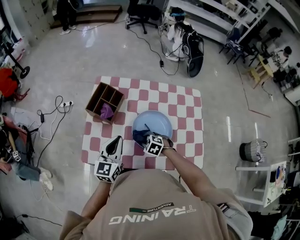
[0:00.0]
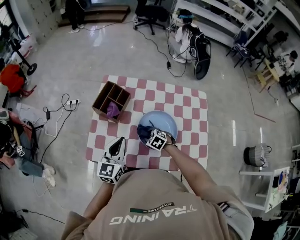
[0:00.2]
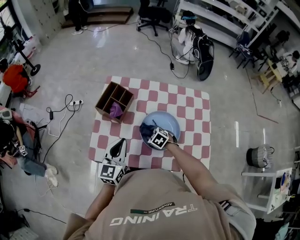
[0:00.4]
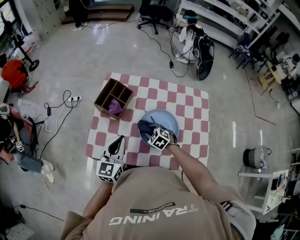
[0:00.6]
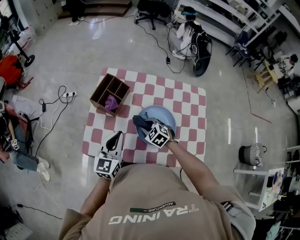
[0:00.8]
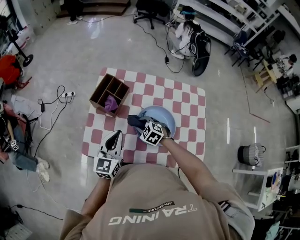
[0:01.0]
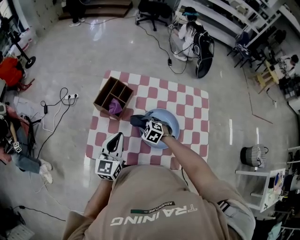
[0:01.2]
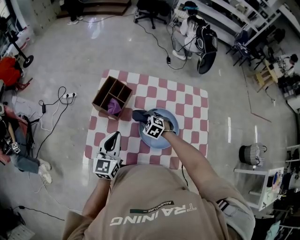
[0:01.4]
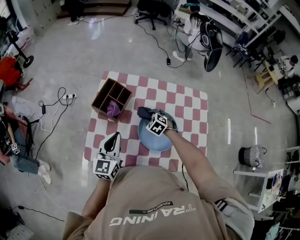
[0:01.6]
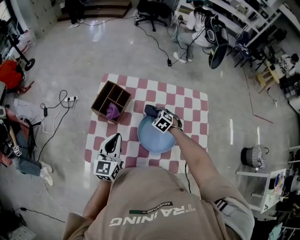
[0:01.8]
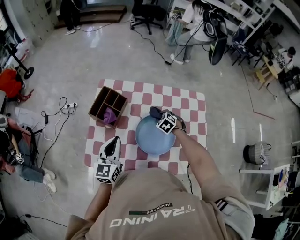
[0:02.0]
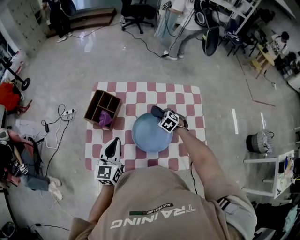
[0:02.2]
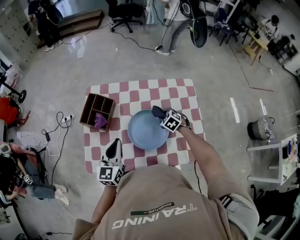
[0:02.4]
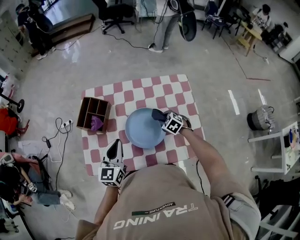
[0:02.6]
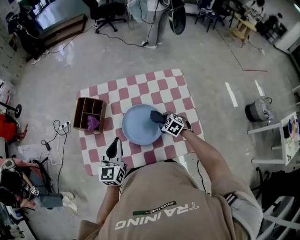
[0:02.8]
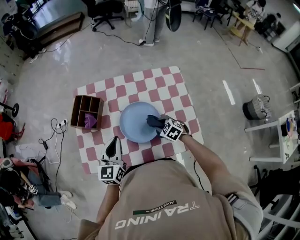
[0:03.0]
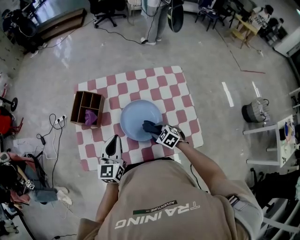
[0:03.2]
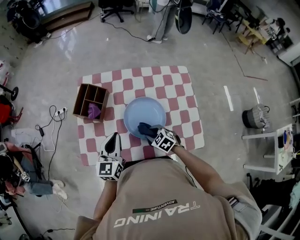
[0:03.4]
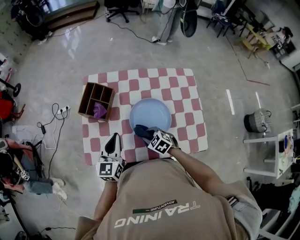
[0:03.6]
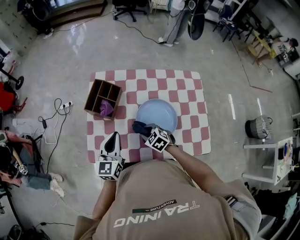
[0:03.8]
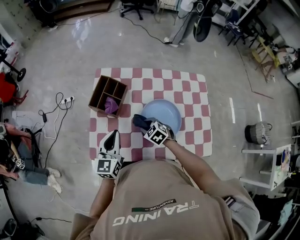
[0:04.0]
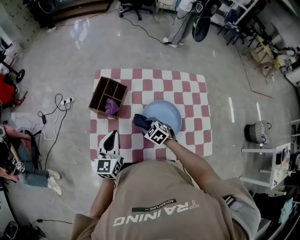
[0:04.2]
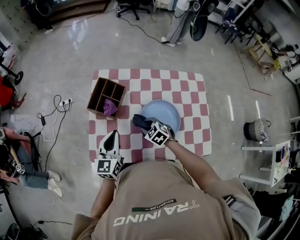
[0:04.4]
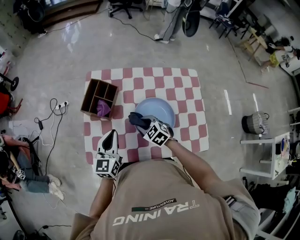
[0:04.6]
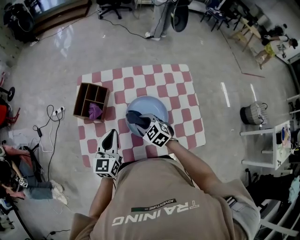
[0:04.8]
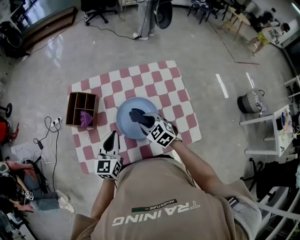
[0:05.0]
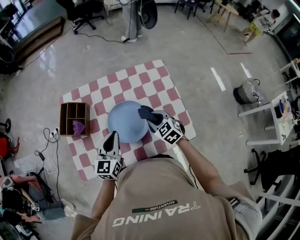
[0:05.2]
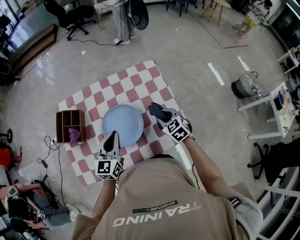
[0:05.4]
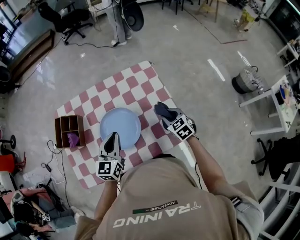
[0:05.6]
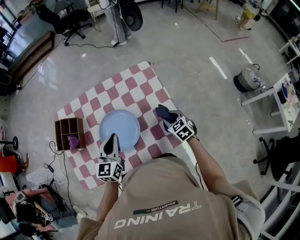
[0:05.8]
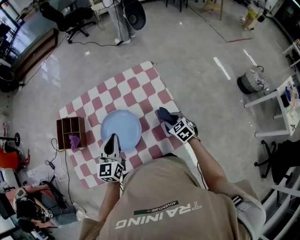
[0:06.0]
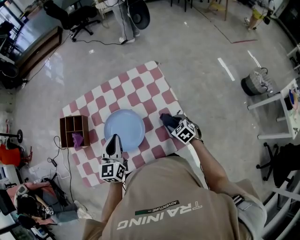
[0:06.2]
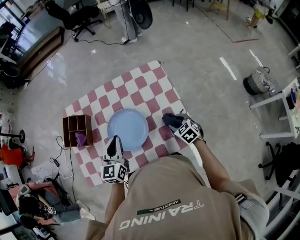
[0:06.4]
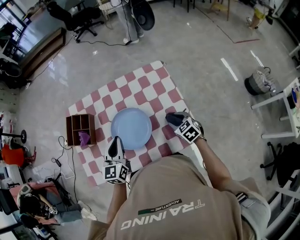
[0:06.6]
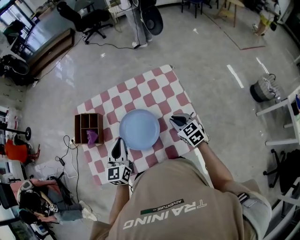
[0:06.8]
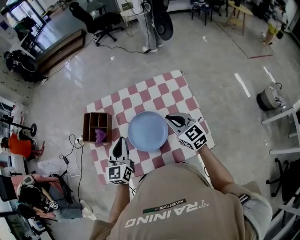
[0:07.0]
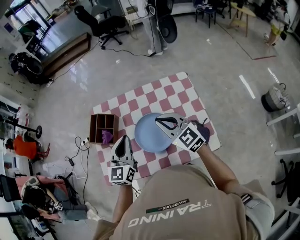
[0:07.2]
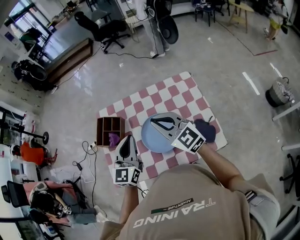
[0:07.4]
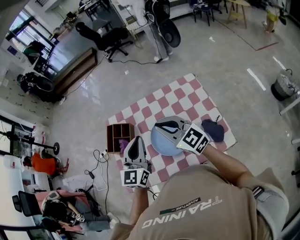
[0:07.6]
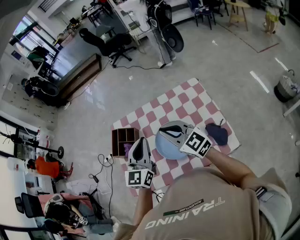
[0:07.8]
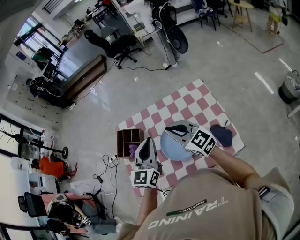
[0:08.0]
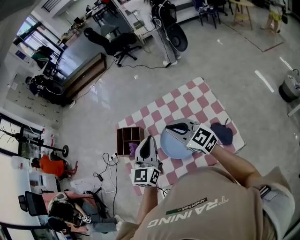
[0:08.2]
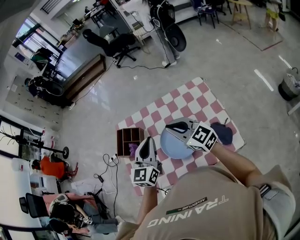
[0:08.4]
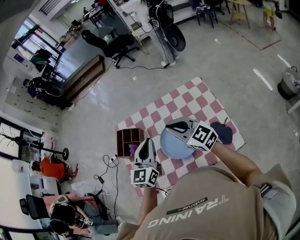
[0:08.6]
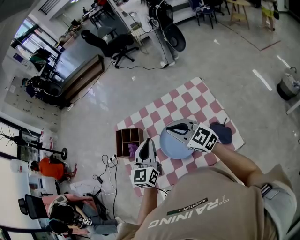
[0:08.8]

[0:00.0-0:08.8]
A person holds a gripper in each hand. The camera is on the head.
0.0 to 1.4 s: The right gripper is displaced forward by about 10 cm.
1.4 to 3.0 s: The right gripper travels to the right and backward by about 20 cm, and changes its angle by roughly 30 degrees; the left gripper goes some 10 cm to the right.
3.0 to 4.4 s: The right gripper travels to the left by some 20 cm. Meanwhile the left gripper shifts about 10 cm to the left.
4.4 to 5.8 s: The left gripper moves some 25 cm, and turns by some 20 degrees; the right gripper shifts by approximately 35 cm, and changes its angle by some 40 degrees.
5.8 to 7.4 s: The left gripper shifts approximately 15 cm upward and to the left; the right gripper is displaced to the left and upward by some 35 cm, tilts its fingers about 40 degrees upward, and closes.
7.4 to 8.8 s: The grippers move only a little.

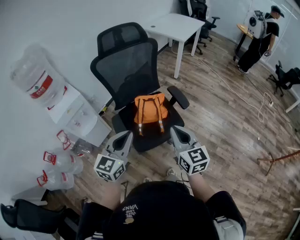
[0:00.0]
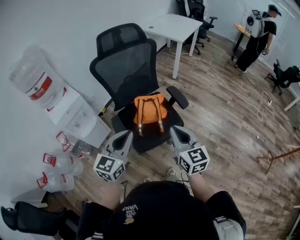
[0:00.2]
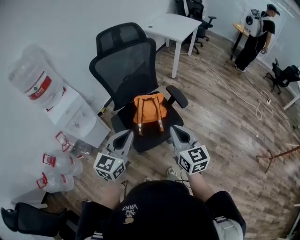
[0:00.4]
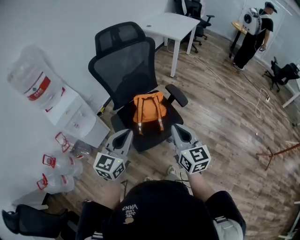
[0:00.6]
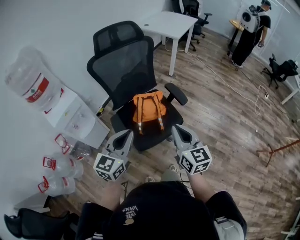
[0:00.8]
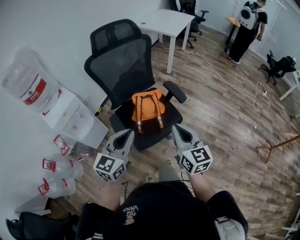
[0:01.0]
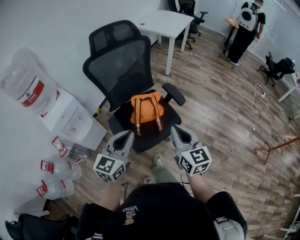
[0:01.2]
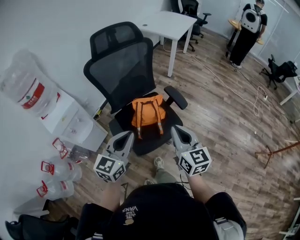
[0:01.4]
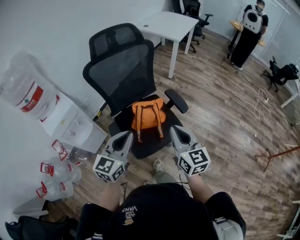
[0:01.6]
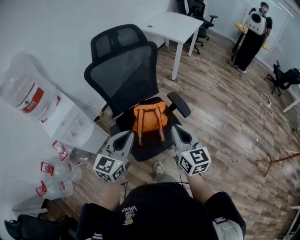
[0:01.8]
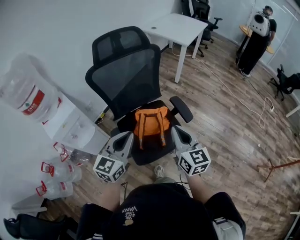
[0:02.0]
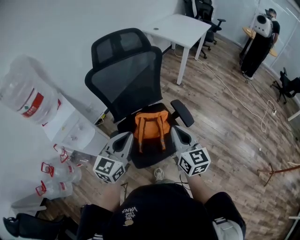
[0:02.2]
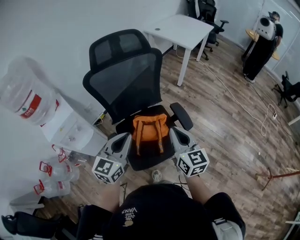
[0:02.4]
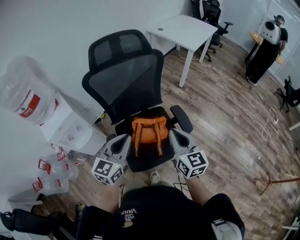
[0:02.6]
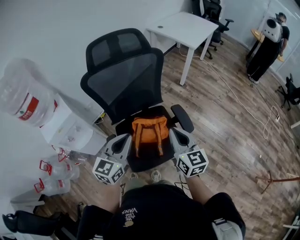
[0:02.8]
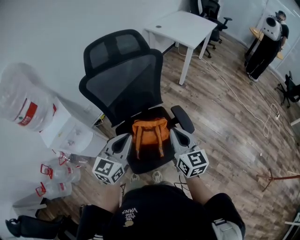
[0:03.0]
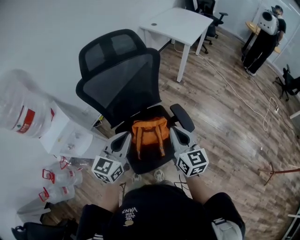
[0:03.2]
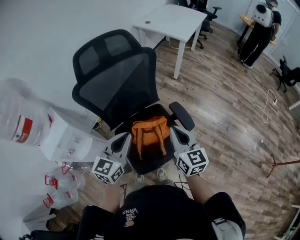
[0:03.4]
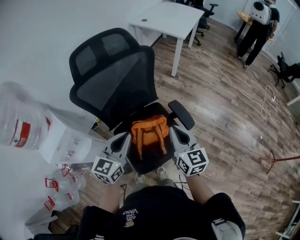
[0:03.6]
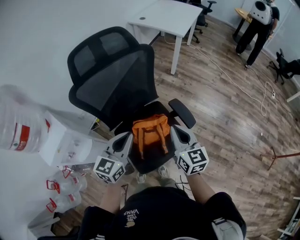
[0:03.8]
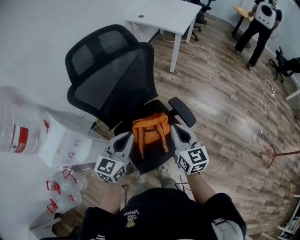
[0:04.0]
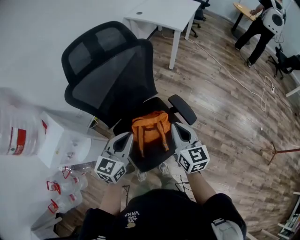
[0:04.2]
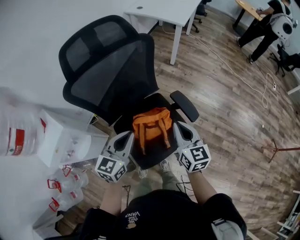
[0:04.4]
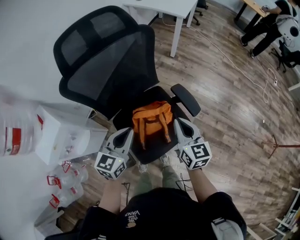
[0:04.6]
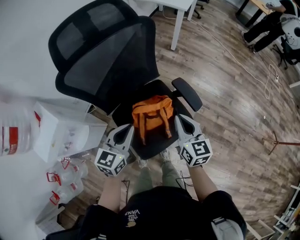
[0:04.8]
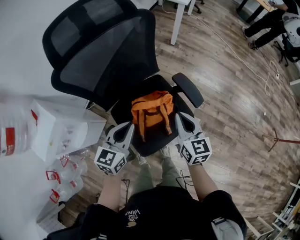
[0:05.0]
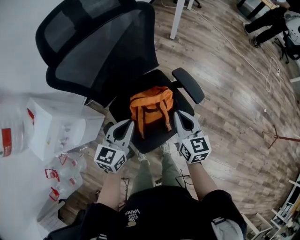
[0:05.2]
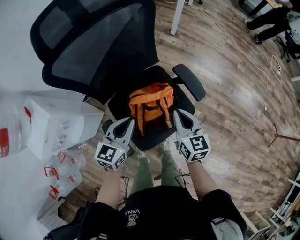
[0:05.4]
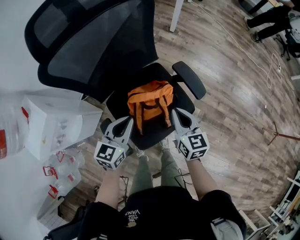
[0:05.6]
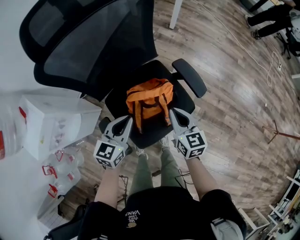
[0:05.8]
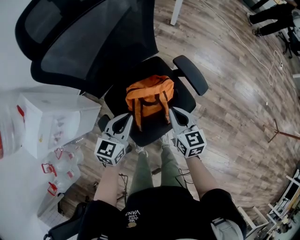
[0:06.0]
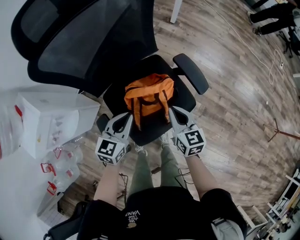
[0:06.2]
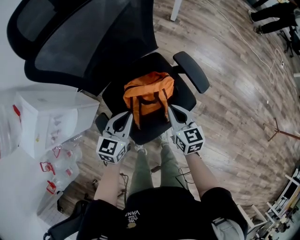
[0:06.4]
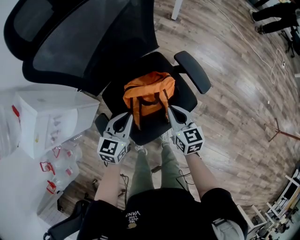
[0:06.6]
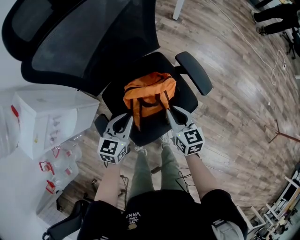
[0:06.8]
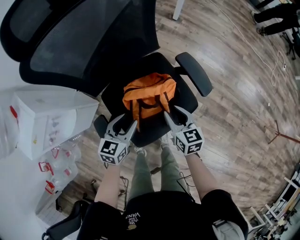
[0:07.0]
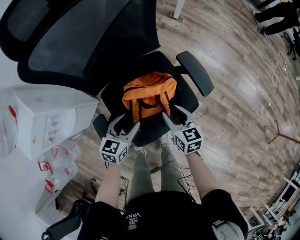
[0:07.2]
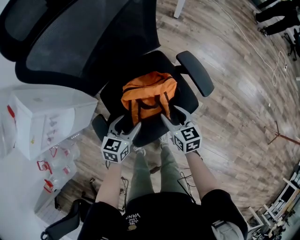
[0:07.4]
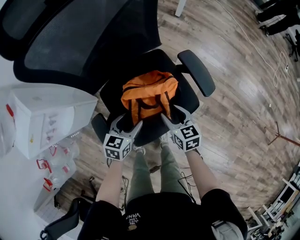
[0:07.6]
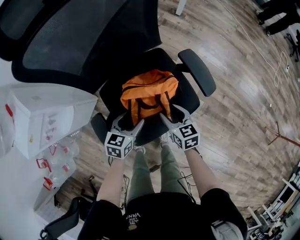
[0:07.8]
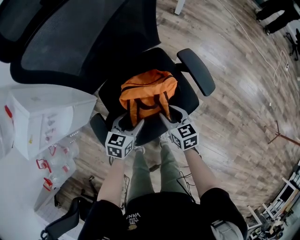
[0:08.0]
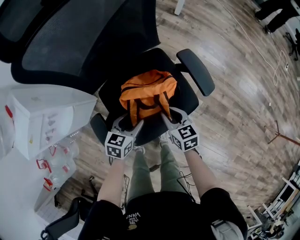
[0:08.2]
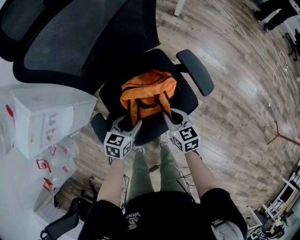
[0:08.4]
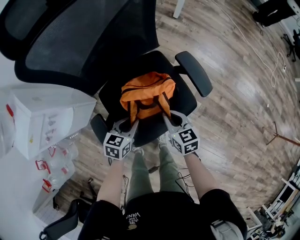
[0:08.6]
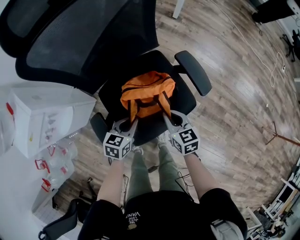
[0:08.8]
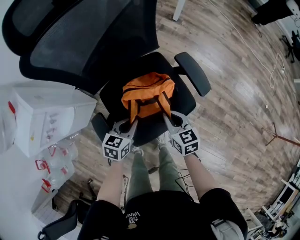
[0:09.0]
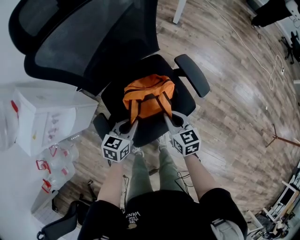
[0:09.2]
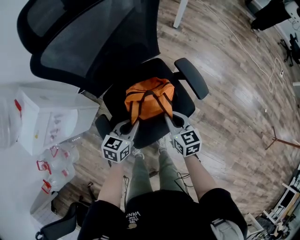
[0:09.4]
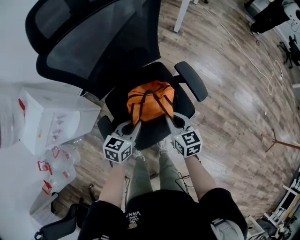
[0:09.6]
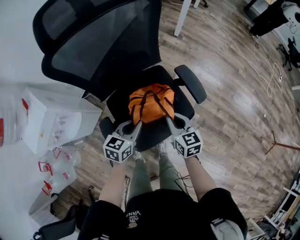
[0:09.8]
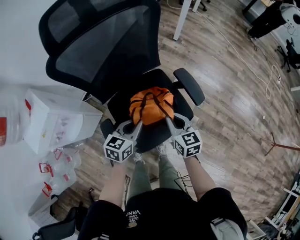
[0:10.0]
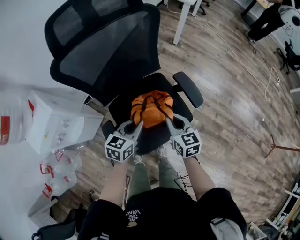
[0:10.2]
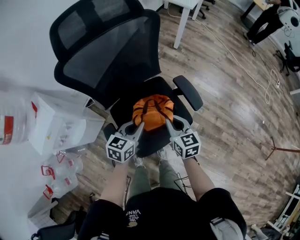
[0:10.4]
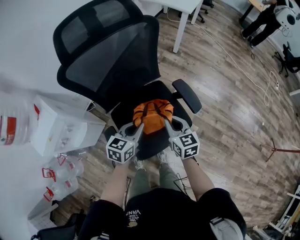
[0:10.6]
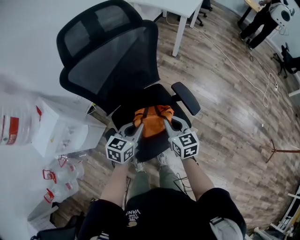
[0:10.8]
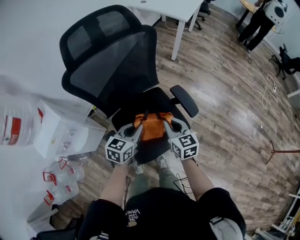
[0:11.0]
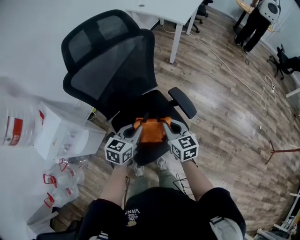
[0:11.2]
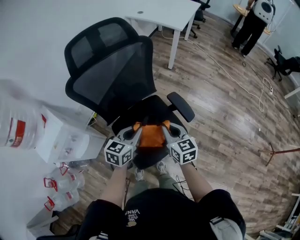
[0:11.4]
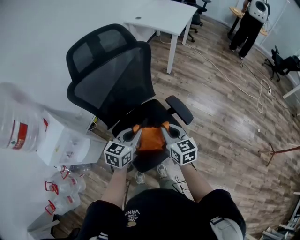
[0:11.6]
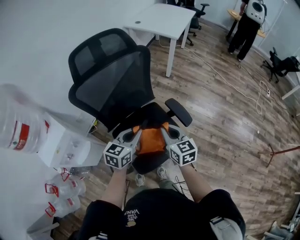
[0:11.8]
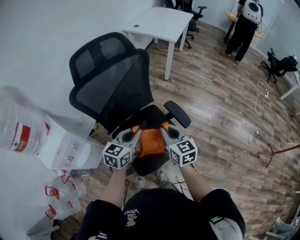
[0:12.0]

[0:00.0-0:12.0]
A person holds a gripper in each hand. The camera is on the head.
0.0 to 1.6 s: Both grippers travel together forward, some 5 cm.
1.6 to 3.0 s: The two grippers go roughly 15 cm forward.
3.0 to 4.4 s: The right gripper travels downward by about 5 cm. Meanwhile the left gripper is displaced downward and forward by approximately 10 cm.
4.4 to 6.0 s: Both grippers move downward, roughly 15 cm.
6.0 to 7.6 s: The grippers both shift downward by some 15 cm. The right gripper opens. The left gripper opens.
7.6 to 9.0 s: The right gripper closes; the left gripper closes up.
9.0 to 10.4 s: Both grippers move upward, approximately 15 cm.
10.4 to 12.0 s: Both grippers travel together upward, some 15 cm.

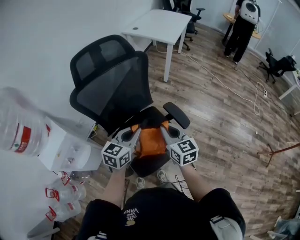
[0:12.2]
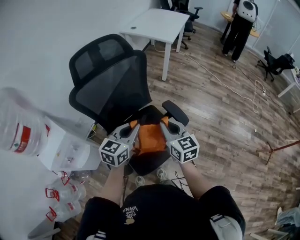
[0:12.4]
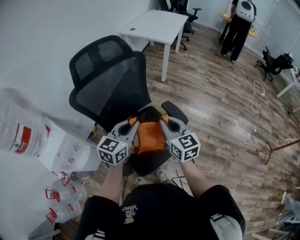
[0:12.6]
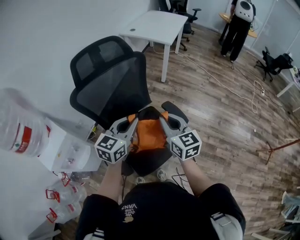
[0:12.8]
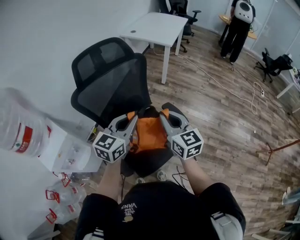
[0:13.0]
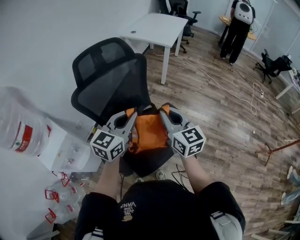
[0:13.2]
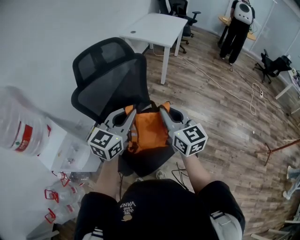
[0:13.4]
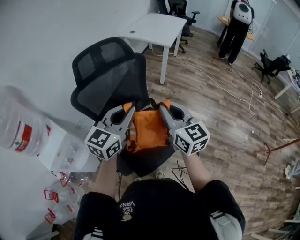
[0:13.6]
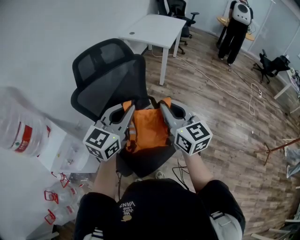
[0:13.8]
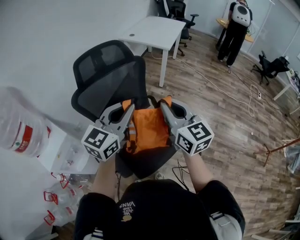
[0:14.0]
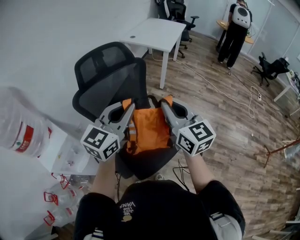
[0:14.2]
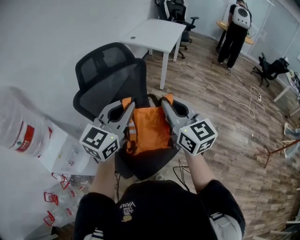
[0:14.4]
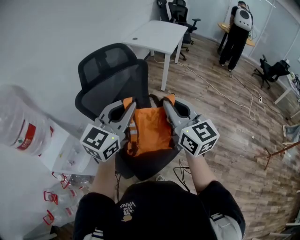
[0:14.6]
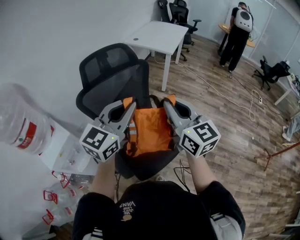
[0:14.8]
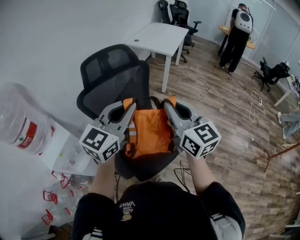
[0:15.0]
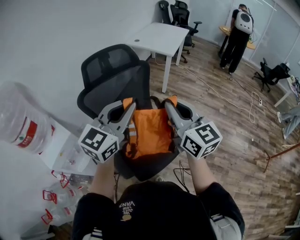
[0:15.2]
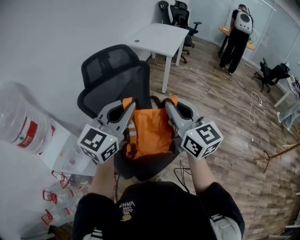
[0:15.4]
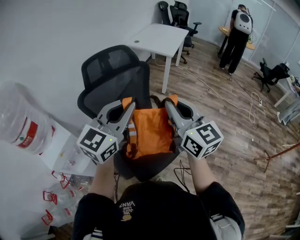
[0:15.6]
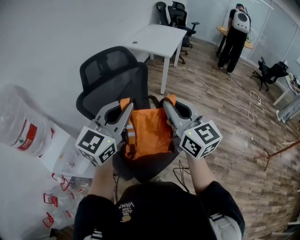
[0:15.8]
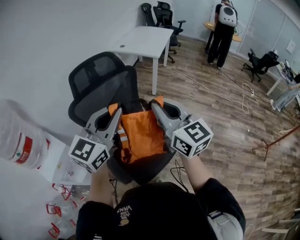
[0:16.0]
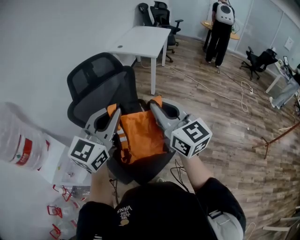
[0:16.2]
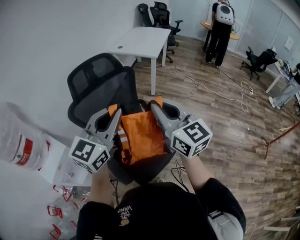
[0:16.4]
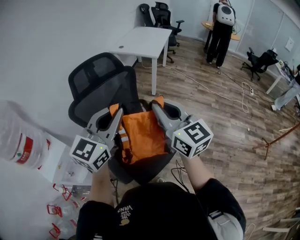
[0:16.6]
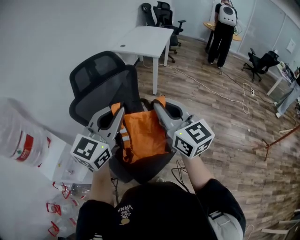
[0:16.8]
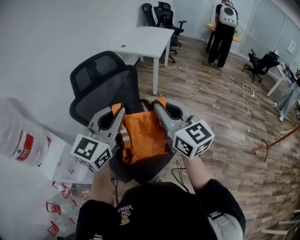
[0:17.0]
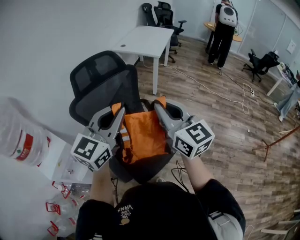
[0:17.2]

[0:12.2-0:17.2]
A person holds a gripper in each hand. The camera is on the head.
12.2 to 13.8 s: The grippers both shift upward by some 15 cm. The left gripper changes its angle by some 20 degrees.
13.8 to 15.6 s: The grippers both shift upward by approximately 5 cm.
15.6 to 17.2 s: The grippers make only small movements.
